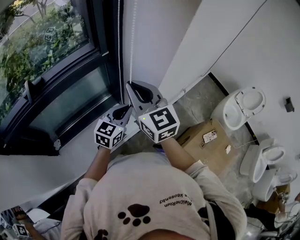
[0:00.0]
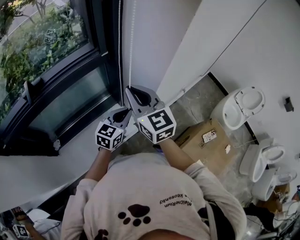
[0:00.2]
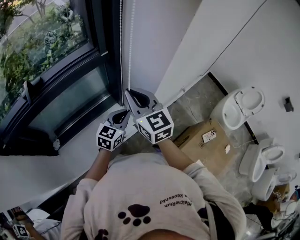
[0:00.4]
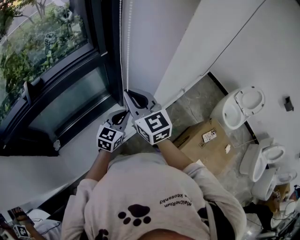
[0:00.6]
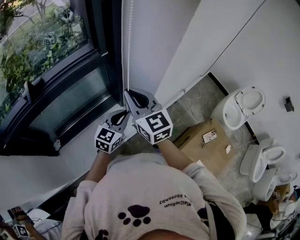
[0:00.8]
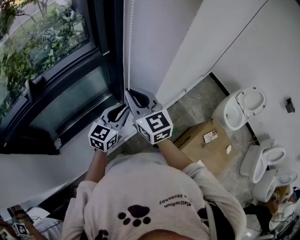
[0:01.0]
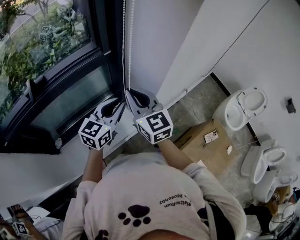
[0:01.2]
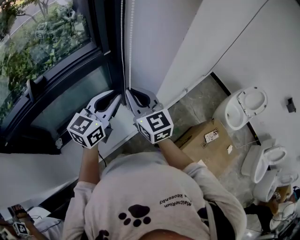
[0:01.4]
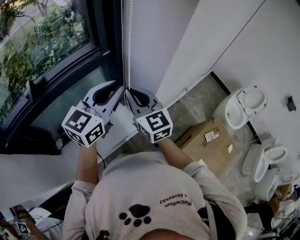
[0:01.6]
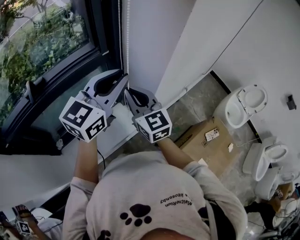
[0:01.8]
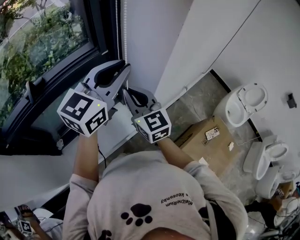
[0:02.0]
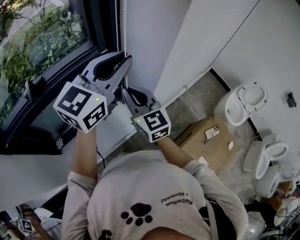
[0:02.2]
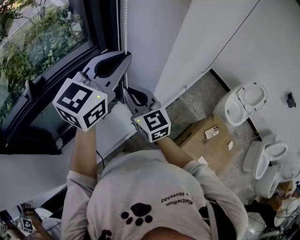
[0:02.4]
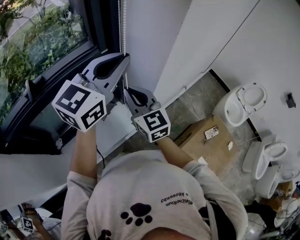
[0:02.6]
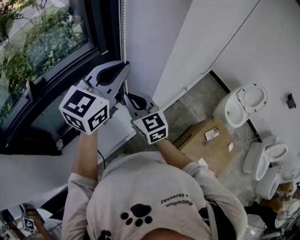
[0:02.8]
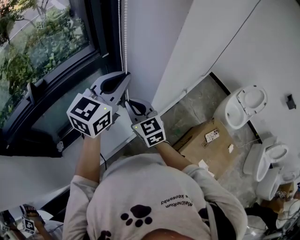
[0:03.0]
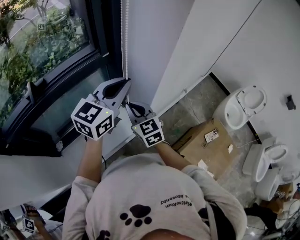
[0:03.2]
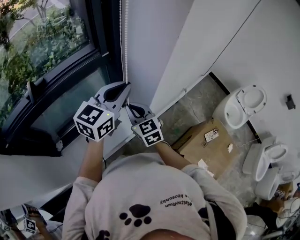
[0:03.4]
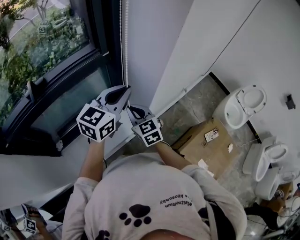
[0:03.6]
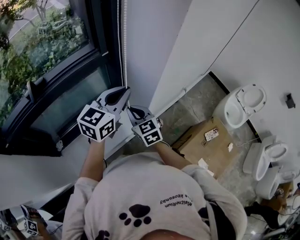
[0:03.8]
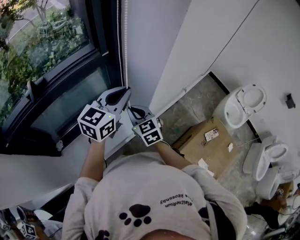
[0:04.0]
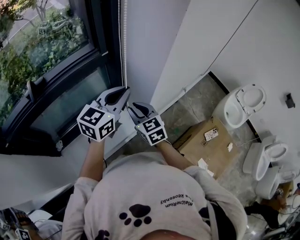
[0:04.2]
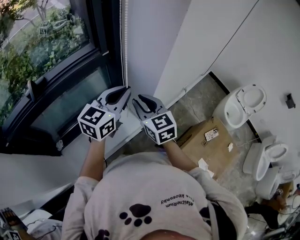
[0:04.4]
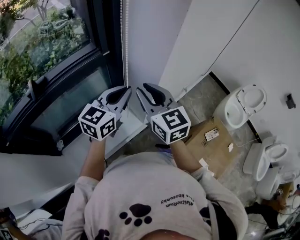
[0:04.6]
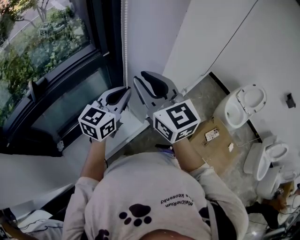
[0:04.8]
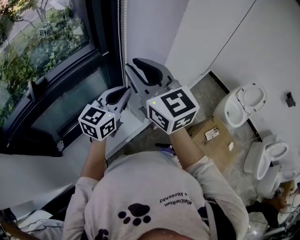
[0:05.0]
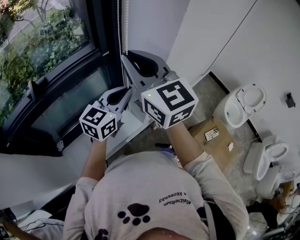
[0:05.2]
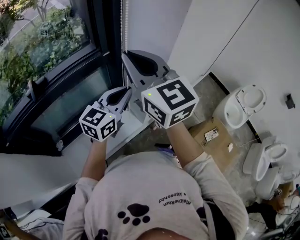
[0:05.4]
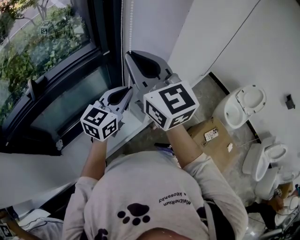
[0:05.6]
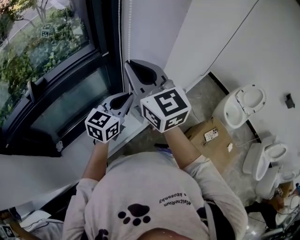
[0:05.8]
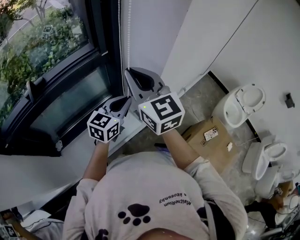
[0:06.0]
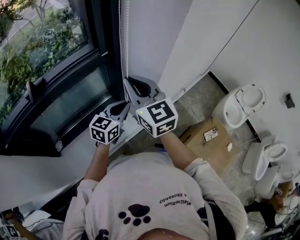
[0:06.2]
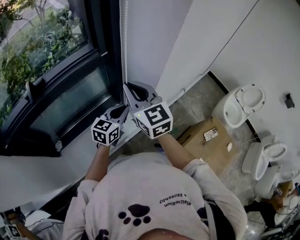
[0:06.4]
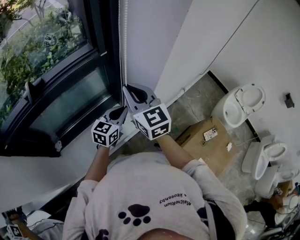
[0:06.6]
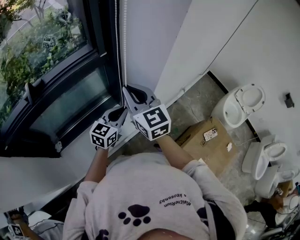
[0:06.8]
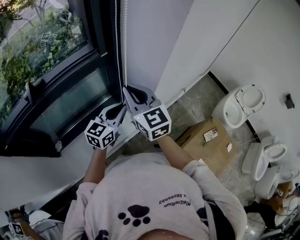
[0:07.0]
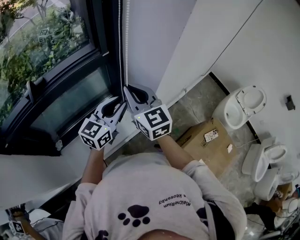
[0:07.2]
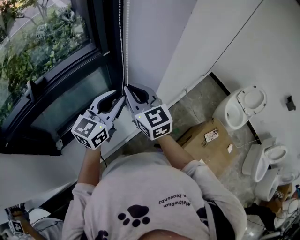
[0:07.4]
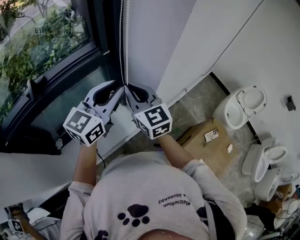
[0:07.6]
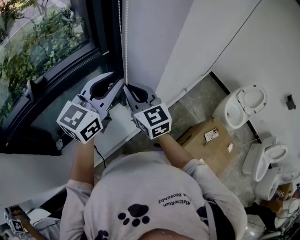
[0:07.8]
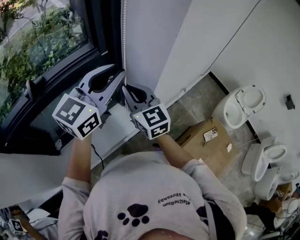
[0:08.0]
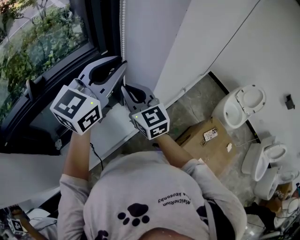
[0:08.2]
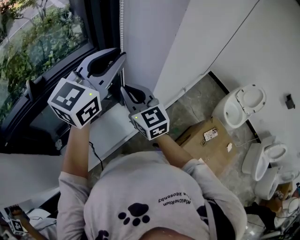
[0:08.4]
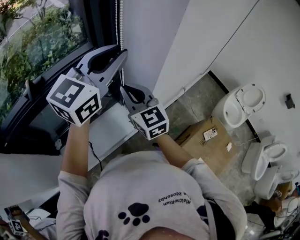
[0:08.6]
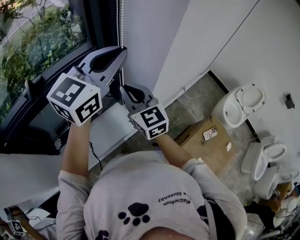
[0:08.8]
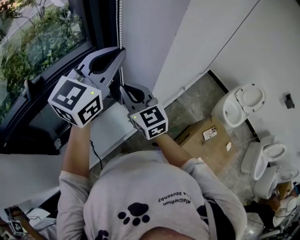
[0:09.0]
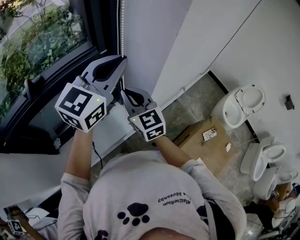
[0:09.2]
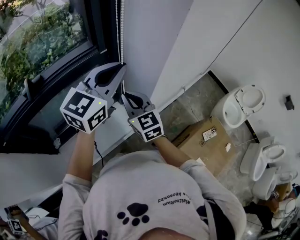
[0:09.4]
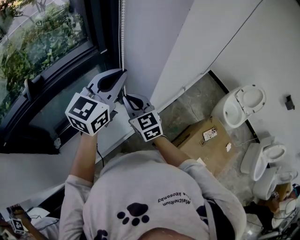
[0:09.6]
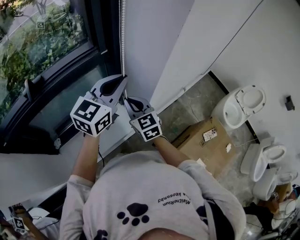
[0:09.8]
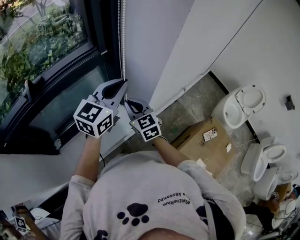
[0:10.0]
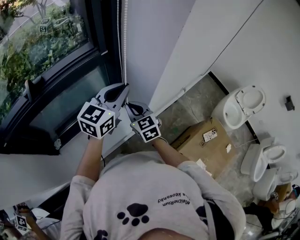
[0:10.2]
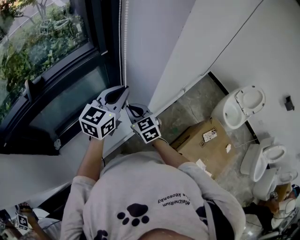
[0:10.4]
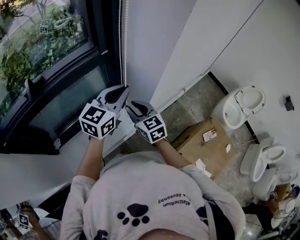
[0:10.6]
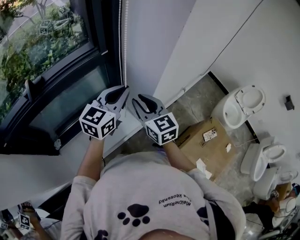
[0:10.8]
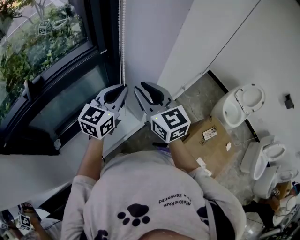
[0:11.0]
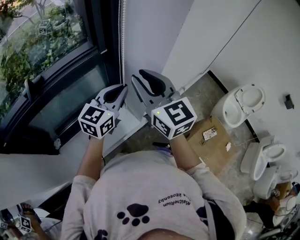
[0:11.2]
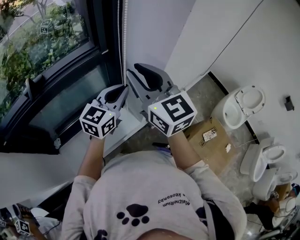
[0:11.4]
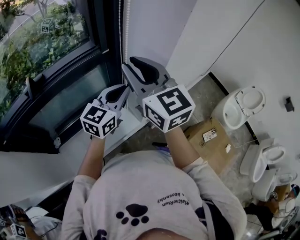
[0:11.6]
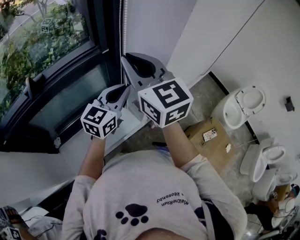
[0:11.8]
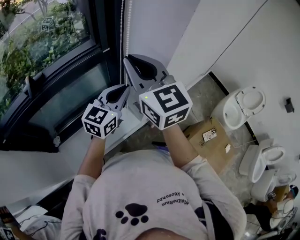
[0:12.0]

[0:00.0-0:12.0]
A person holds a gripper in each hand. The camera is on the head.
0:00.0 to 0:01.6: The left gripper heads upward, covering about 20 cm.
0:01.6 to 0:03.0: The left gripper reaches approximately 10 cm upward, then returns; the right gripper heads downward, covering roughly 5 cm.
0:03.0 to 0:04.4: The right gripper reaches approximately 10 cm downward, then returns. Meanwhile the left gripper moves downward, approximately 10 cm.
0:04.4 to 0:06.0: The right gripper moves upward, about 15 cm, while the left gripper moves downward, roughly 10 cm.
0:06.0 to 0:07.6: The left gripper goes about 10 cm upward, and opens its fingers. Meanwhile the right gripper travels downward by roughly 10 cm.
0:07.6 to 0:09.0: The left gripper travels upward by approximately 10 cm, and closes.
0:09.0 to 0:10.4: Both grippers move downward, roughly 15 cm.
0:10.4 to 0:12.0: The right gripper heads upward, covering roughly 30 cm, and changes its angle by roughly 30 degrees.

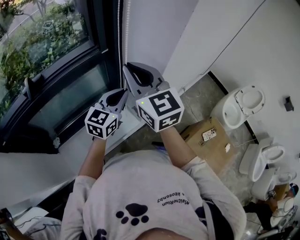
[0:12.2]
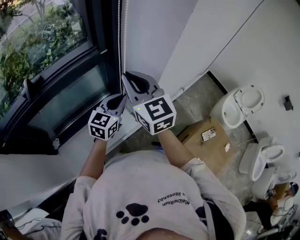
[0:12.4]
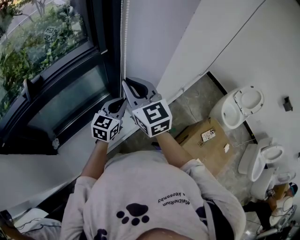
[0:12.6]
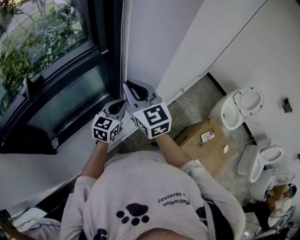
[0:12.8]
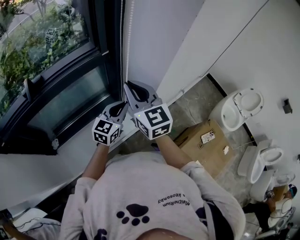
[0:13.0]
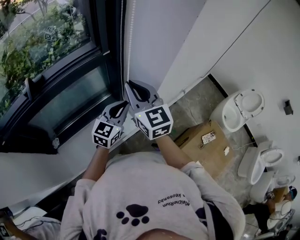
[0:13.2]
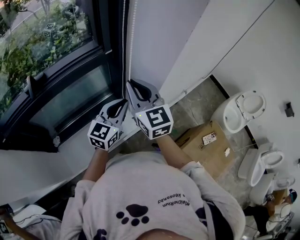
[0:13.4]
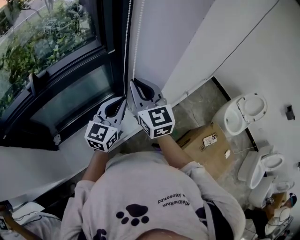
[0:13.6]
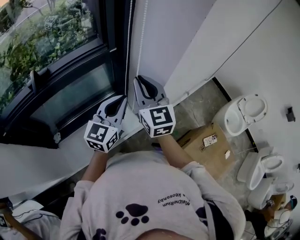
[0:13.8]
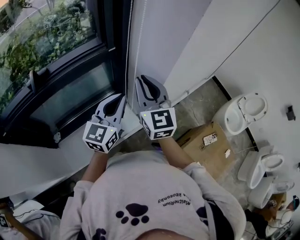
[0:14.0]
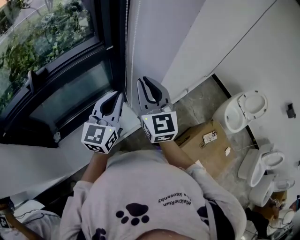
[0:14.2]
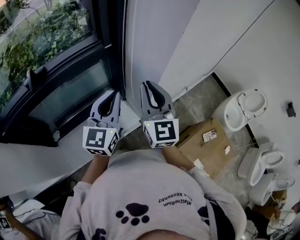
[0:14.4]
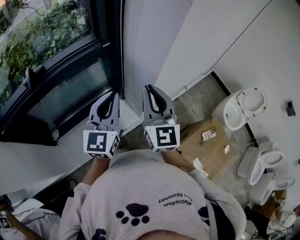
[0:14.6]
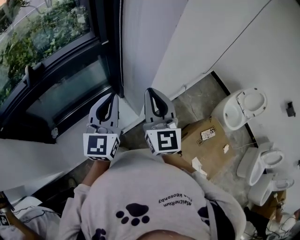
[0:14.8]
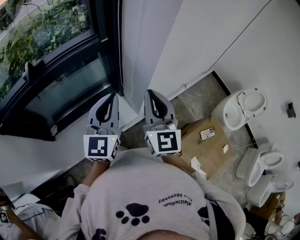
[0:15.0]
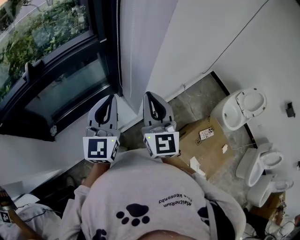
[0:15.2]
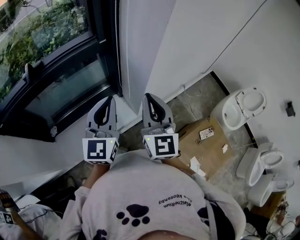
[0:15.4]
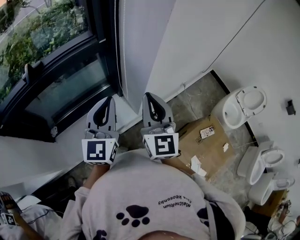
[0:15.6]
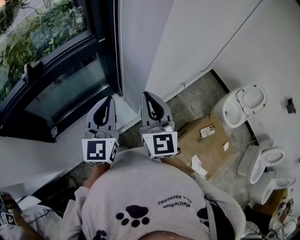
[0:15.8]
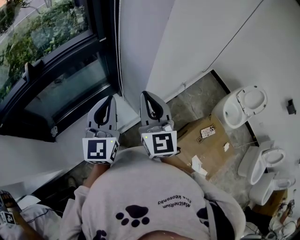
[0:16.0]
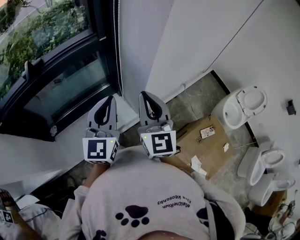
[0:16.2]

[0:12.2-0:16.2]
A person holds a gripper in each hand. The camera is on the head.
0:12.2 to 0:13.6: The right gripper moves downward, approximately 5 cm. The left gripper travels downward and back again, approximately 10 cm each way.
0:13.6 to 0:14.8: The left gripper shifts some 5 cm upward, while the right gripper moves to the right and backward, about 10 cm.
0:14.8 to 0:16.2: There are only small adjustments of the grippers.

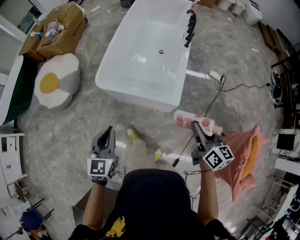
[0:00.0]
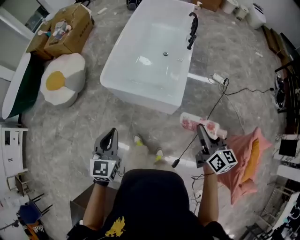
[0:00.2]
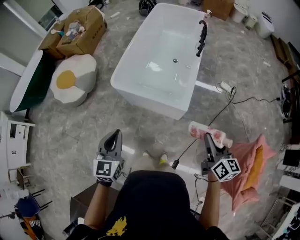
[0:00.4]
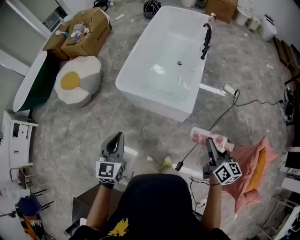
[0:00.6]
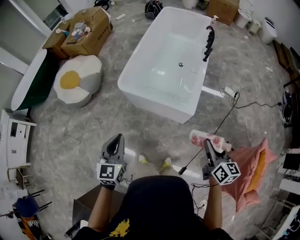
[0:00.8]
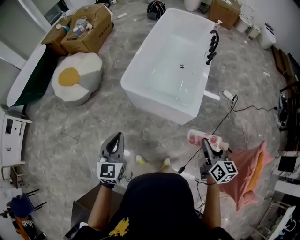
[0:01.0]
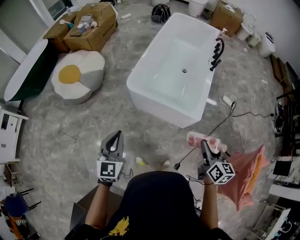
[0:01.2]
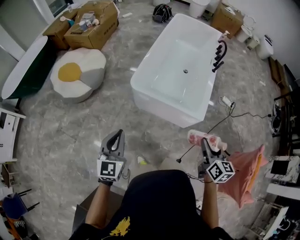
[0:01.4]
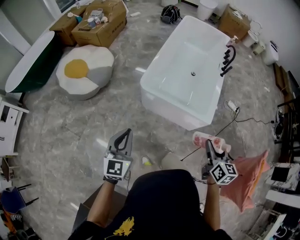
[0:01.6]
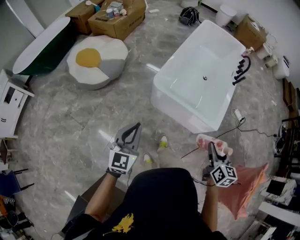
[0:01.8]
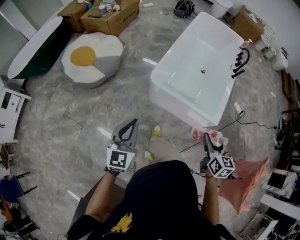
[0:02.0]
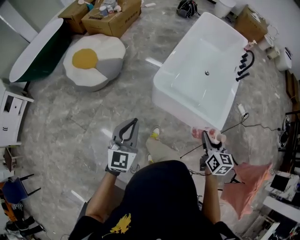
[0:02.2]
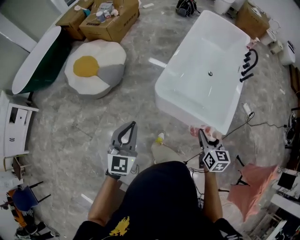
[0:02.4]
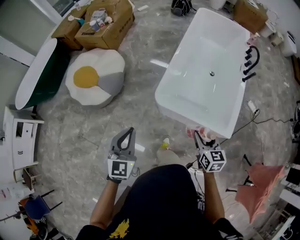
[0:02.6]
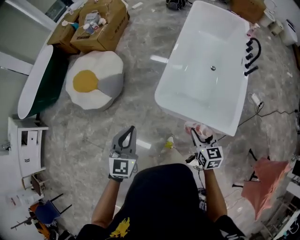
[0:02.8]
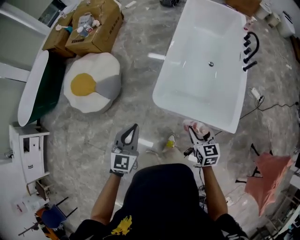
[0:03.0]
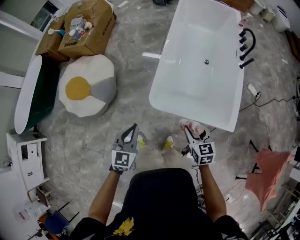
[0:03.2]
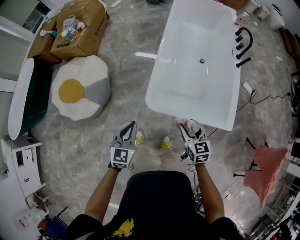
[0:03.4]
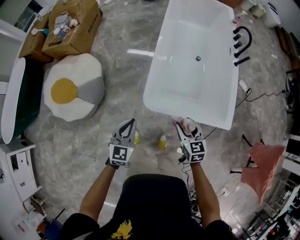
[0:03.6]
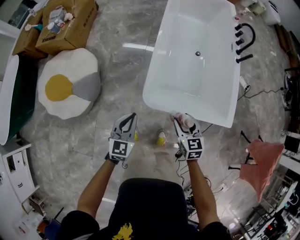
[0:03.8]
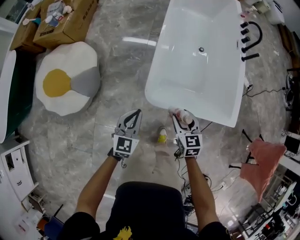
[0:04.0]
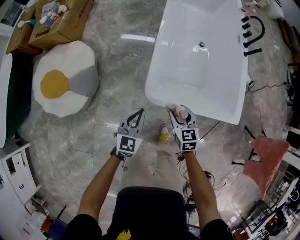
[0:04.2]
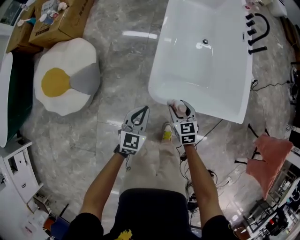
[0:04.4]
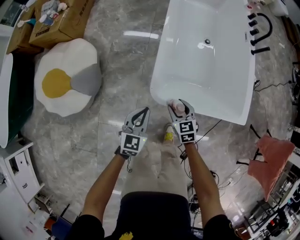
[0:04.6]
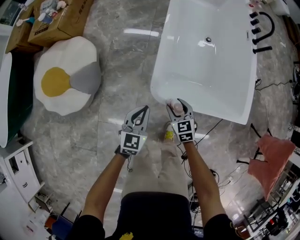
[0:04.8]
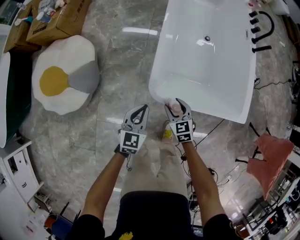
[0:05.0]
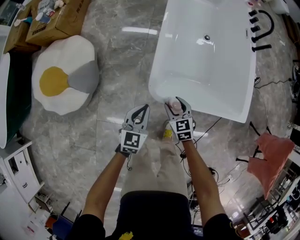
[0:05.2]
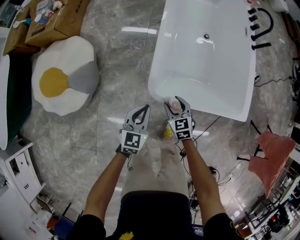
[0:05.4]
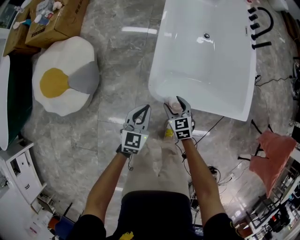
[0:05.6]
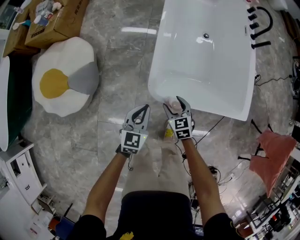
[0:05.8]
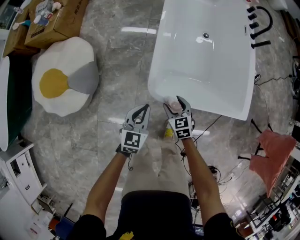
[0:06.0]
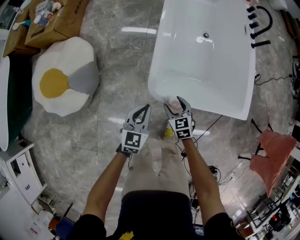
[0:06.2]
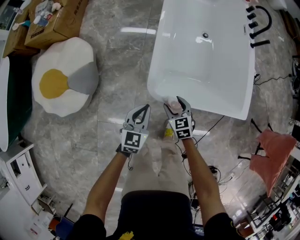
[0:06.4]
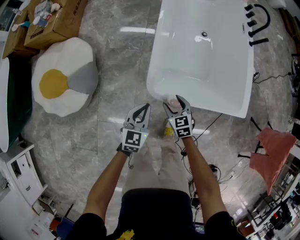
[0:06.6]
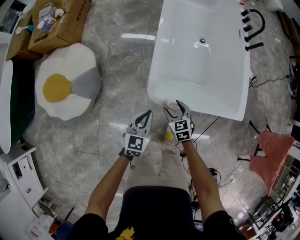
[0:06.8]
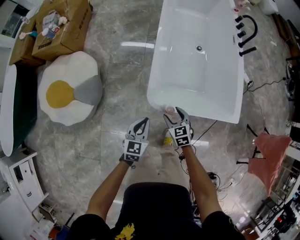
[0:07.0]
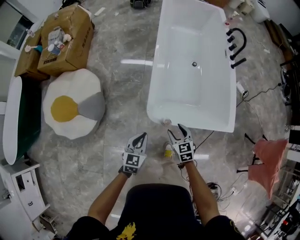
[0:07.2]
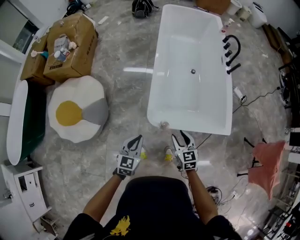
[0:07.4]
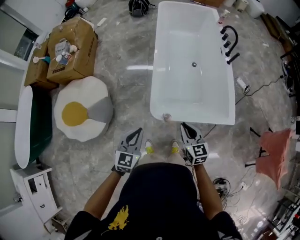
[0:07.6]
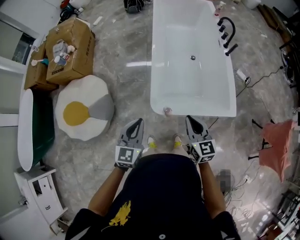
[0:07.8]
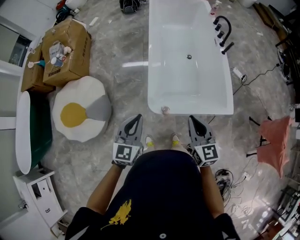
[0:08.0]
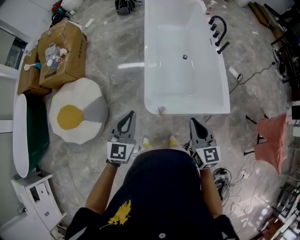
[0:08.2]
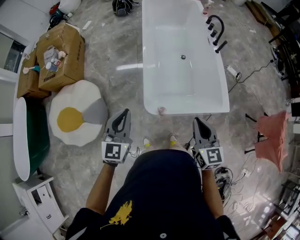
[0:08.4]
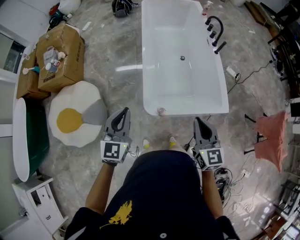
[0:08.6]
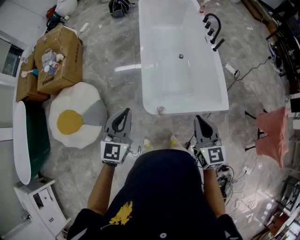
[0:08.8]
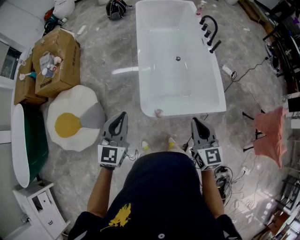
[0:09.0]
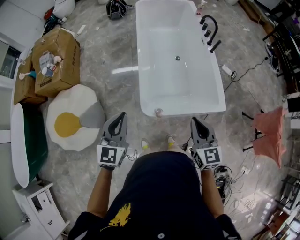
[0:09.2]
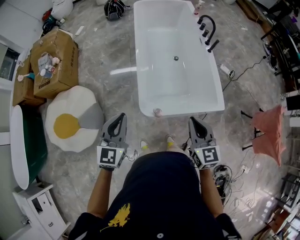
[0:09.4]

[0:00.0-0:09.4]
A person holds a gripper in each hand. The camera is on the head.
0:00.0 to 0:01.6: The two grippers go approximately 25 cm to the left.
0:01.6 to 0:03.2: The right gripper goes roughly 40 cm forward, to the left and downward; the left gripper moves forward, approximately 35 cm.
0:03.2 to 0:04.8: The right gripper shifts approximately 30 cm downward, to the left and forward; the left gripper shifts about 25 cm downward and forward.
0:04.8 to 0:06.2: The grippers make only small movements.
0:06.2 to 0:07.8: Both grippers travel together upward, roughly 30 cm. The right gripper swivels some 30 degrees, and closes up.
0:07.8 to 0:09.4: Both grippers travel together upward, approximately 10 cm.
